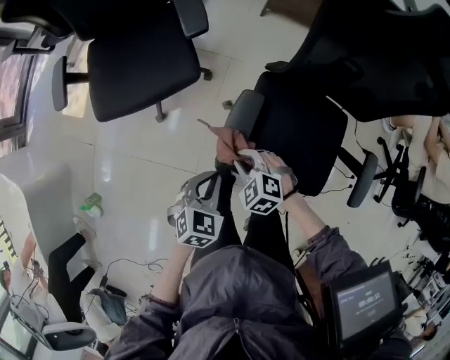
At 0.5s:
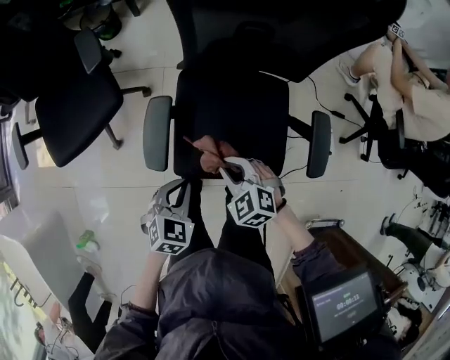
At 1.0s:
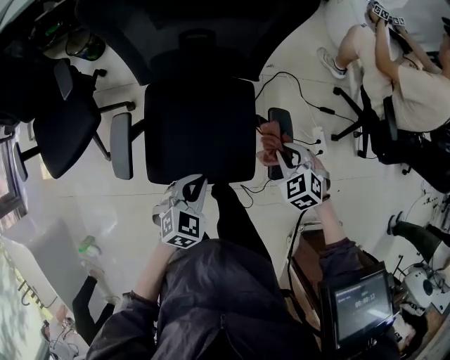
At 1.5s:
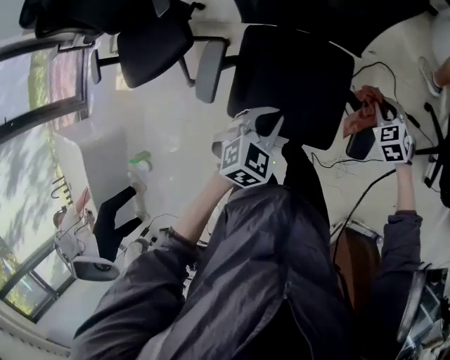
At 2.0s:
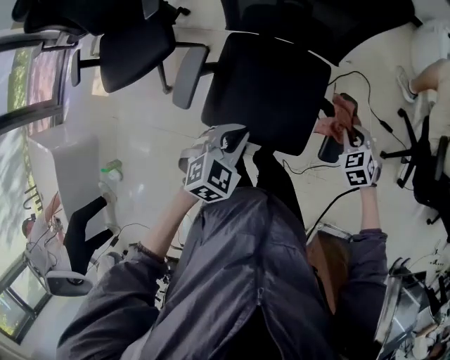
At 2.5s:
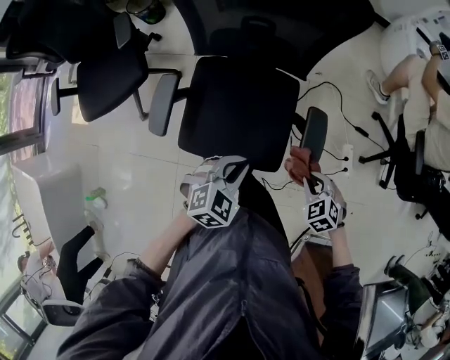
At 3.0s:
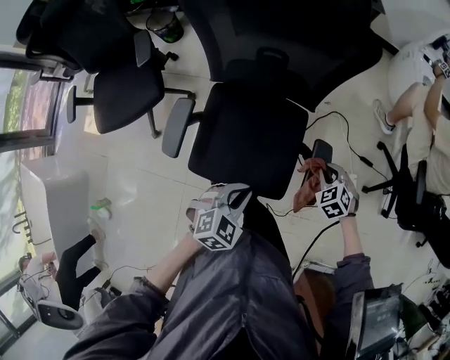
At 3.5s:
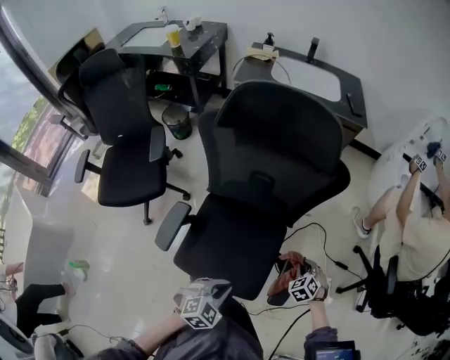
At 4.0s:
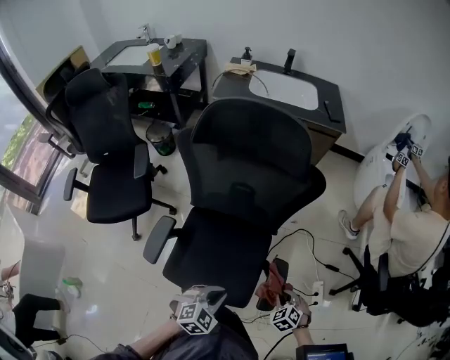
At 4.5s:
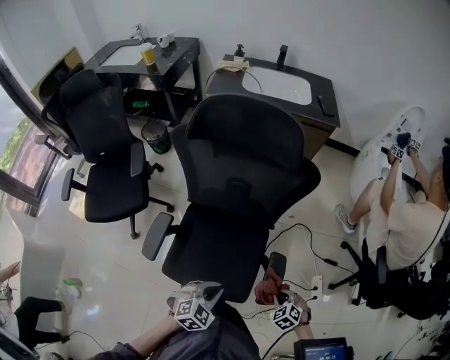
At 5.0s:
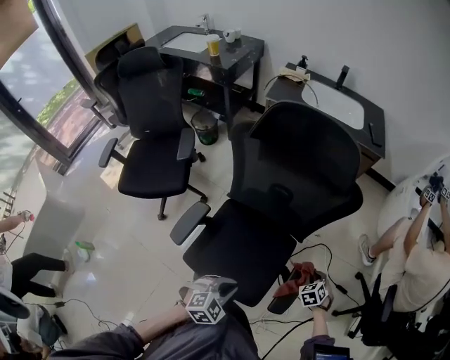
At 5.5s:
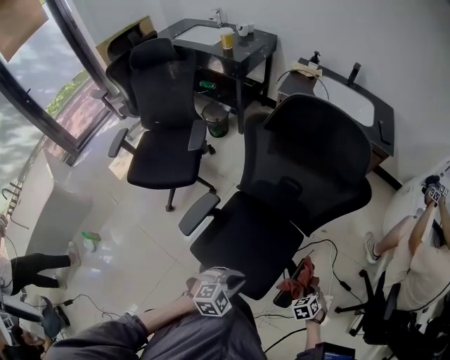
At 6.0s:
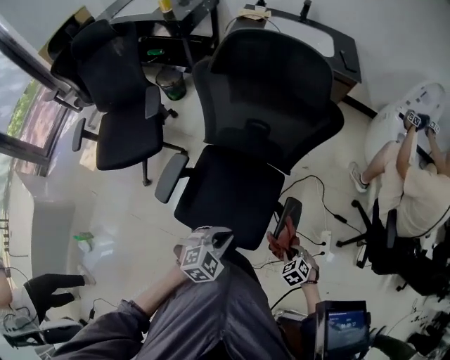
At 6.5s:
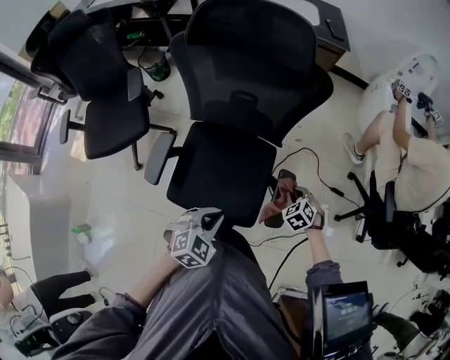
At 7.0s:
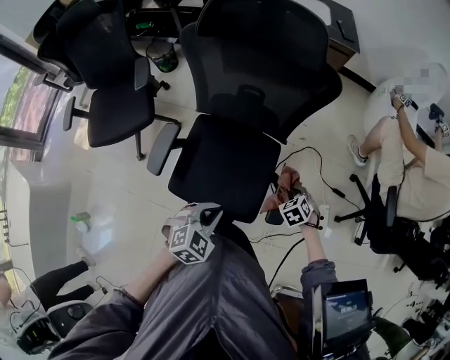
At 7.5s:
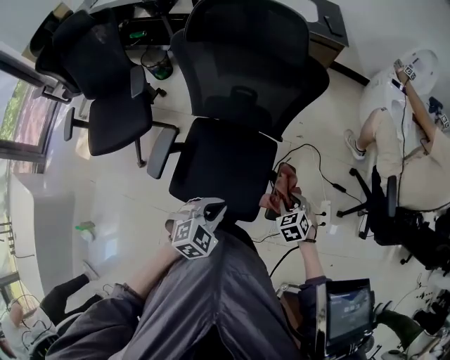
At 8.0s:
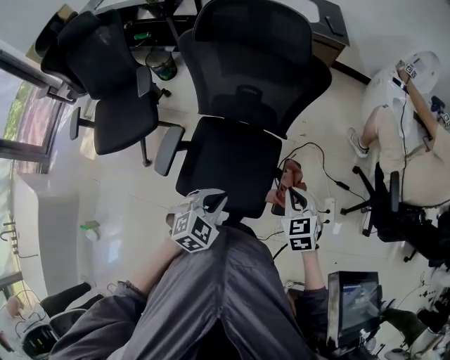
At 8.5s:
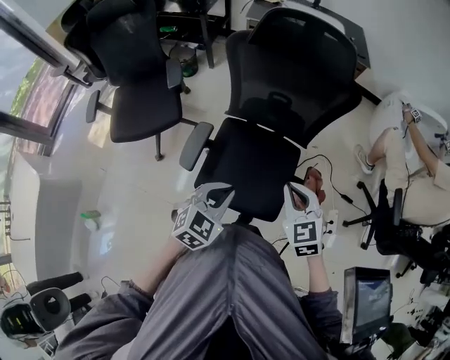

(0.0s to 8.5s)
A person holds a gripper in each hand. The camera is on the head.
0.0s - 2.0s: The right gripper shifts by approximately 50 cm, and changes its angle by about 30 degrees. Meanwhile the left gripper moves about 30 cm, and turns by some 20 degrees.
2.0s - 4.0s: The right gripper moves forward and backward over roughly 20 cm, changing direction 2 times; the left gripper shifts approximately 10 cm to the right.
4.0s - 6.5s: The right gripper swings forward and backward, approximately 20 cm each way, with 2 reversals.
6.5s - 8.5s: The left gripper goes some 15 cm to the left and upward; the right gripper moves upward and to the left, approximately 30 cm, tips its fingers upward by roughly 30 degrees, and opens, then closes again.

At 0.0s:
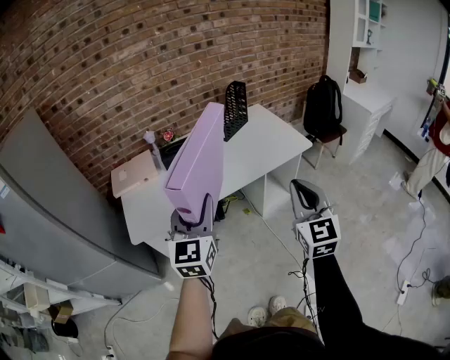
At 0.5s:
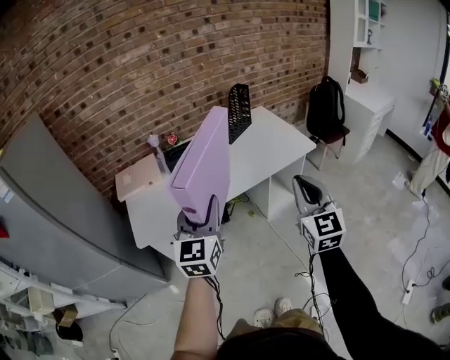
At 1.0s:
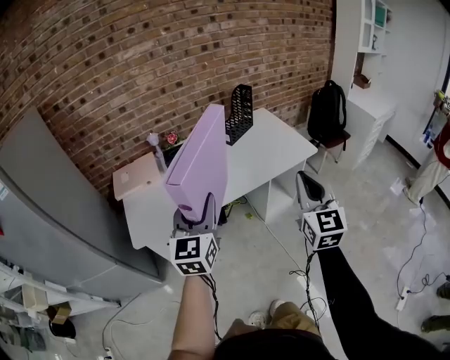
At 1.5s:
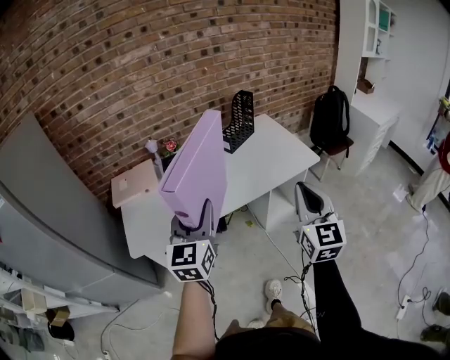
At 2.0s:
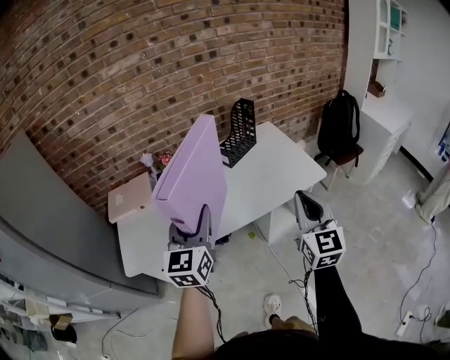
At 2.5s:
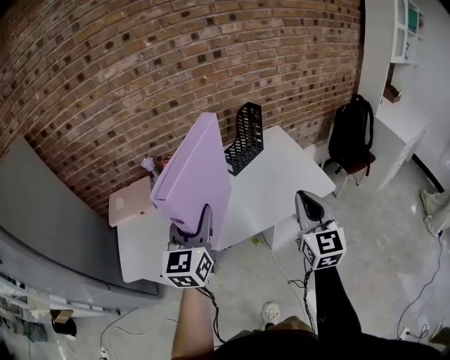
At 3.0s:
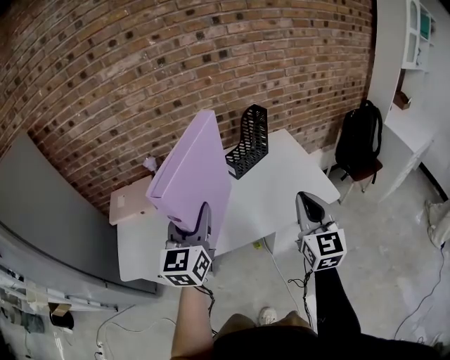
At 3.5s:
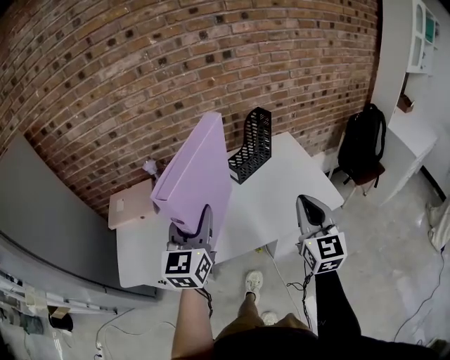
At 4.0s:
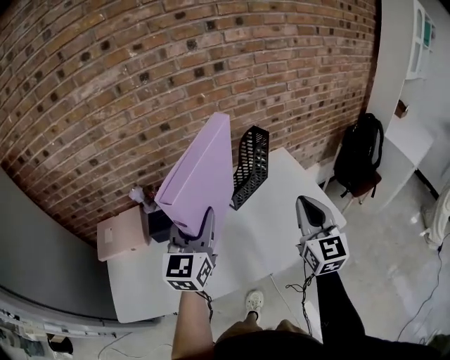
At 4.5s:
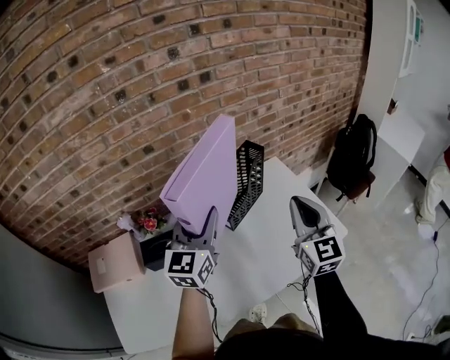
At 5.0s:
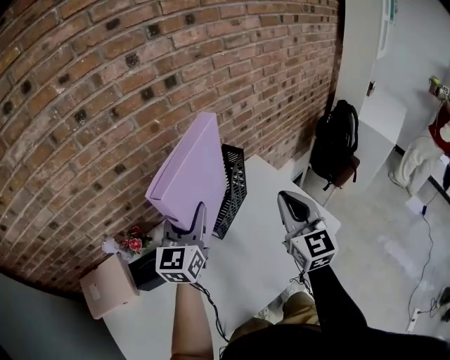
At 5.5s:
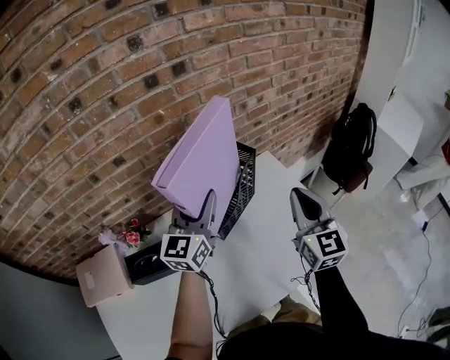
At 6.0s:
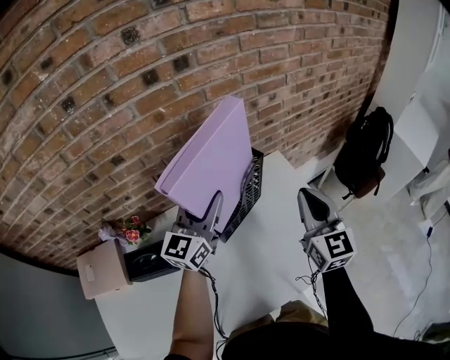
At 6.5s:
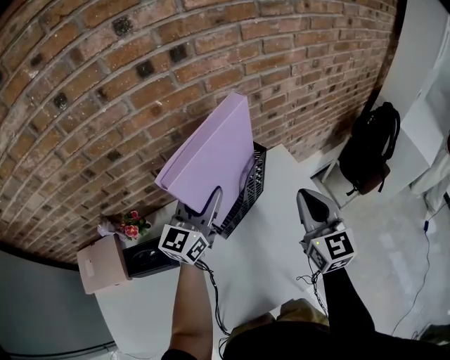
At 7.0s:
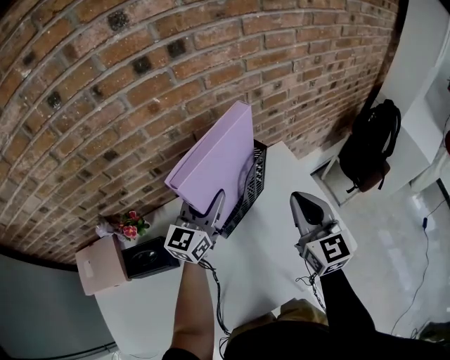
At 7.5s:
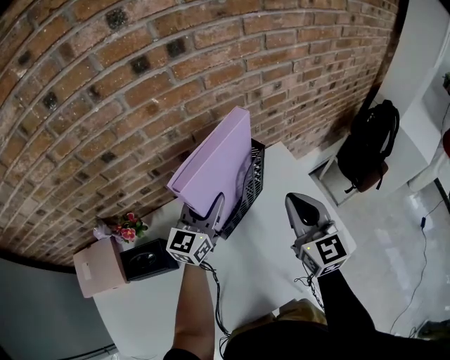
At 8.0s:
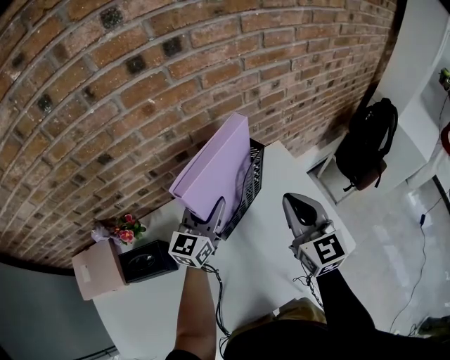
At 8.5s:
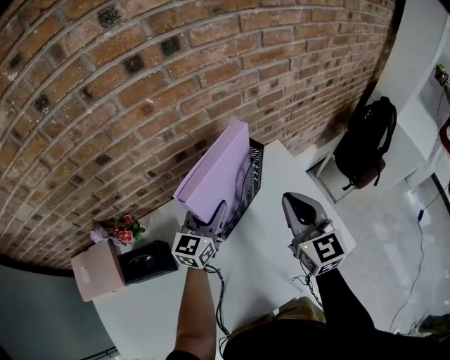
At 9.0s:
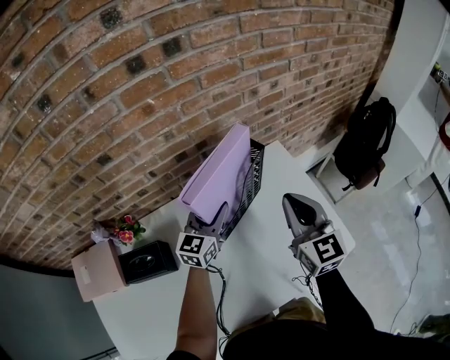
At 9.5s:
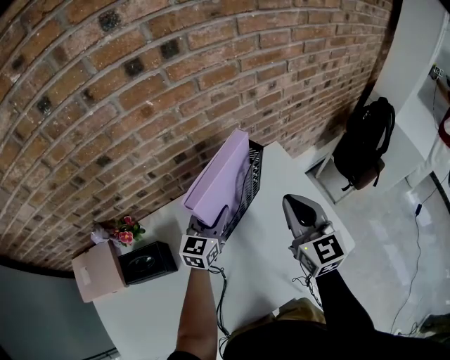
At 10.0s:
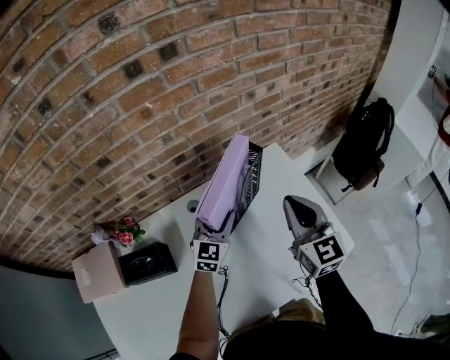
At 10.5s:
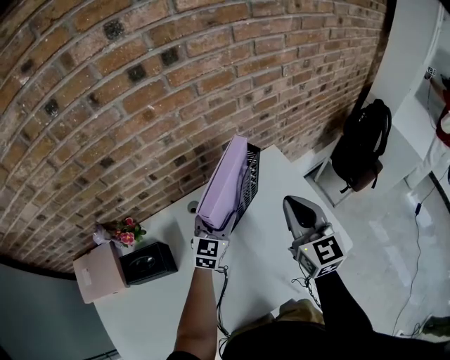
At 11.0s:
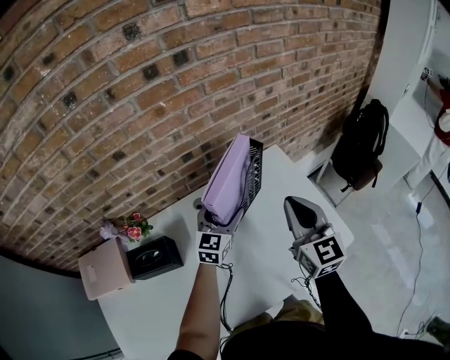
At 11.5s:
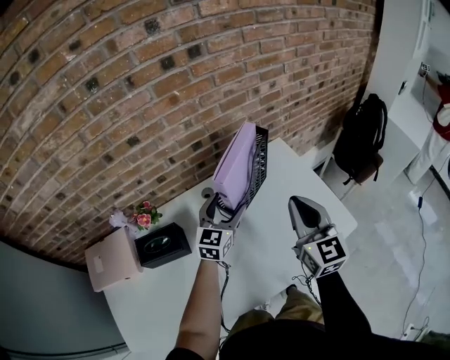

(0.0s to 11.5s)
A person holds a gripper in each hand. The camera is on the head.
0.0s - 2.0s: Both grippers travel together forward, some 15 cm.
2.0s - 4.0s: Both grippers move forward, approximately 25 cm.
4.0s - 6.0s: The grippers both shift forward by approximately 25 cm.
6.0s - 7.5s: The left gripper goes roughly 10 cm downward. Meanwhile the right gripper ends up approximately 5 cm from where it was.
7.5s - 9.5s: The left gripper heads downward, covering about 10 cm.
9.5s - 11.5s: Both grippers move backward, approximately 10 cm. The left gripper opens up.

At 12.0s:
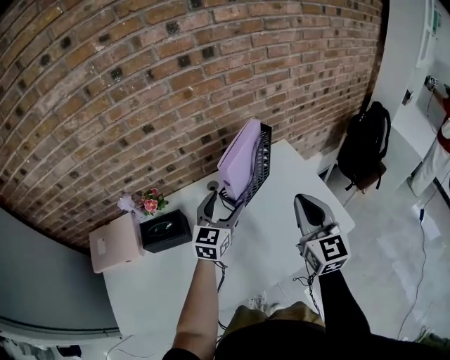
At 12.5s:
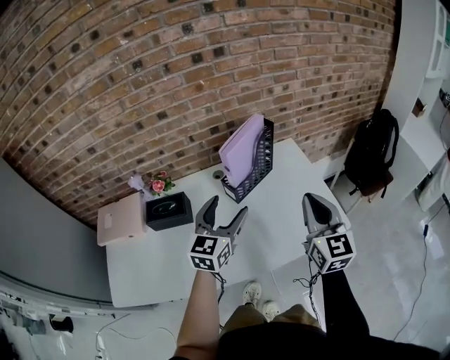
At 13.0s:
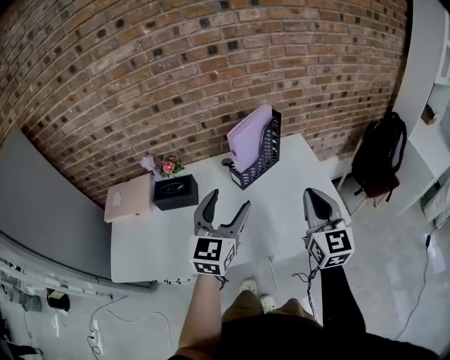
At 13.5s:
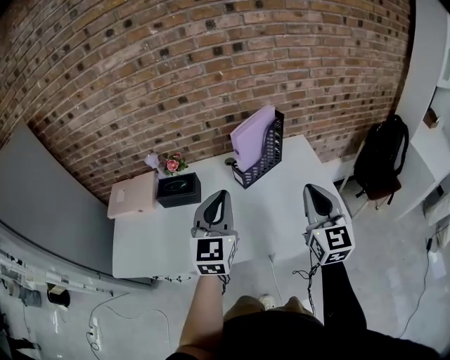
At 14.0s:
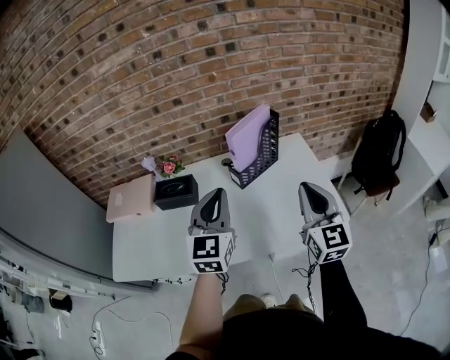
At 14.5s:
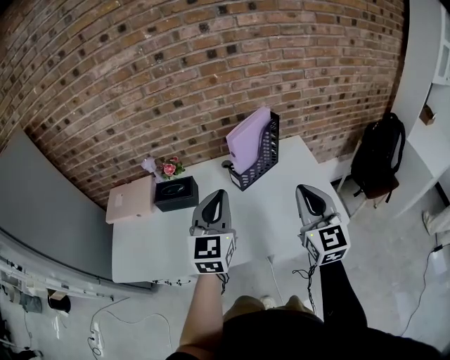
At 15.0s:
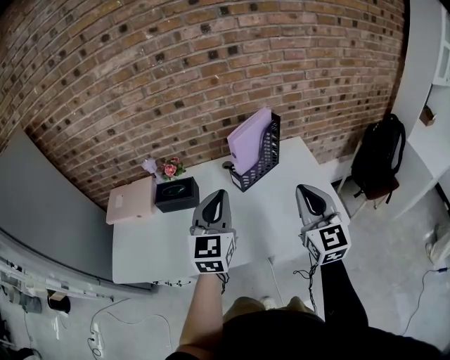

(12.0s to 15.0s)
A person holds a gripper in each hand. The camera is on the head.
12.0s - 13.5s: The right gripper shifts roughly 10 cm backward, while the left gripper travels backward and upward by roughly 25 cm, rotates approximately 30 degrees, and closes its fingers.
13.5s - 15.0s: There are only small adjustments of the grippers.

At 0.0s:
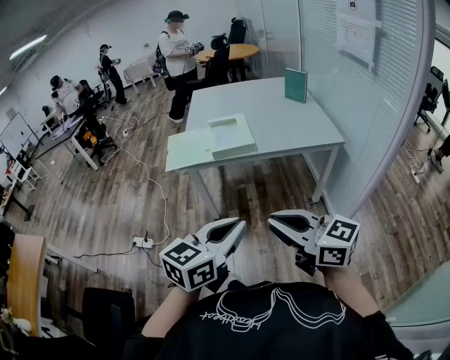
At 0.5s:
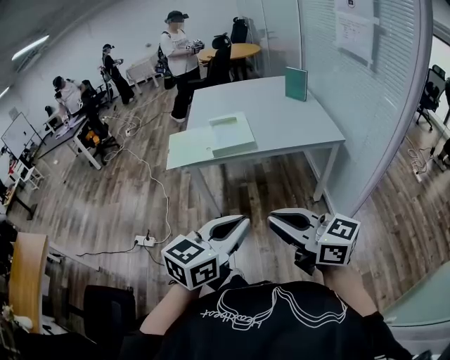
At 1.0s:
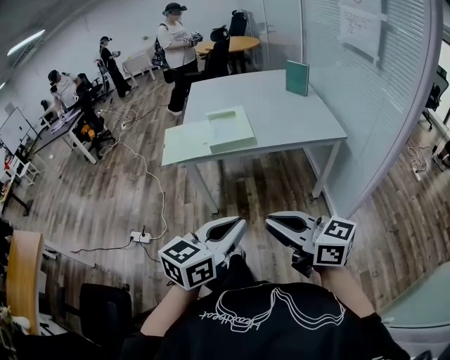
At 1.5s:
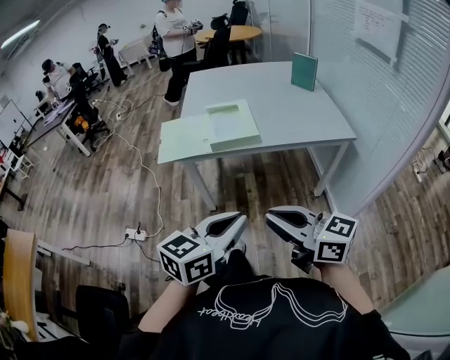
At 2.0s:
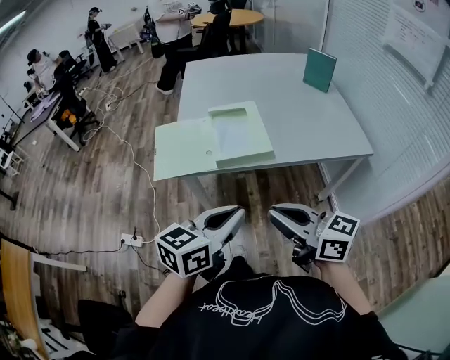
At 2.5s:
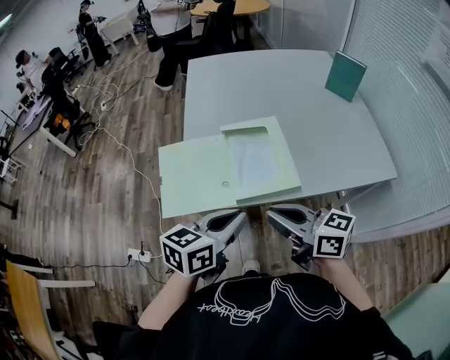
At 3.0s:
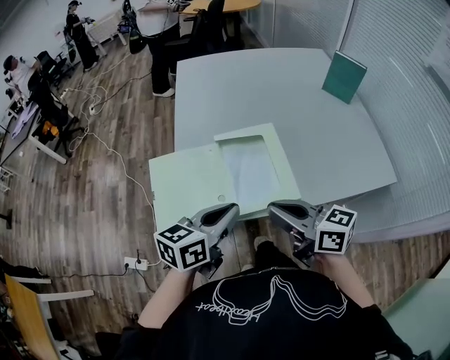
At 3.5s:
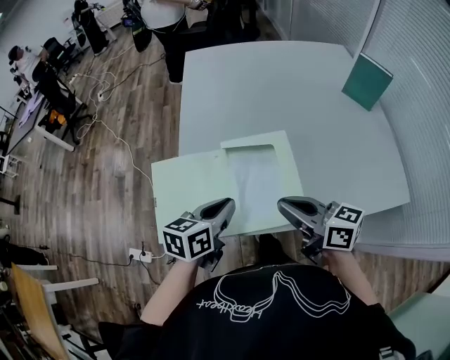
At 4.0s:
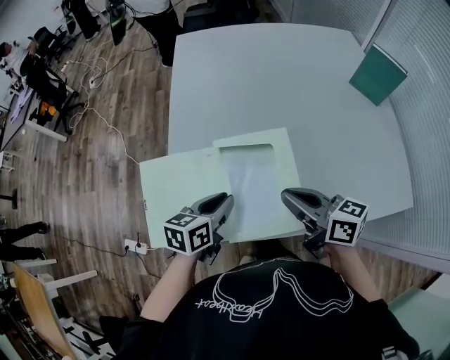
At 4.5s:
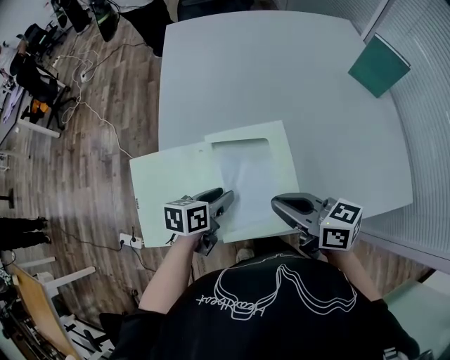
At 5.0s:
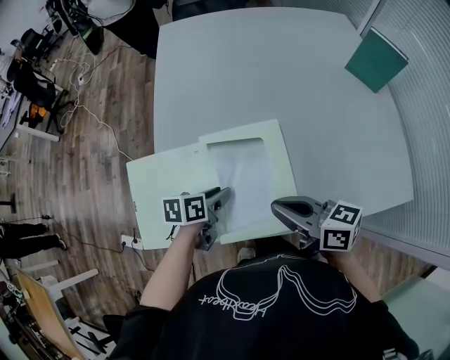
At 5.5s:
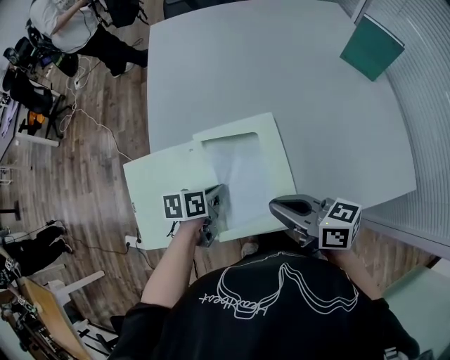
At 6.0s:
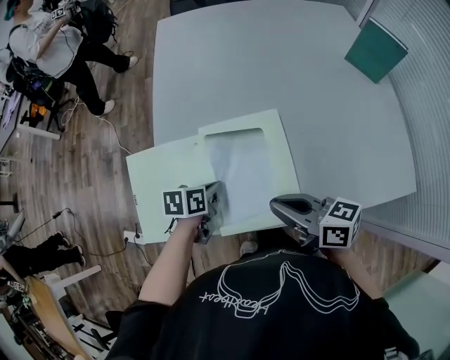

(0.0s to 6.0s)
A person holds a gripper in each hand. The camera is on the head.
0.0s - 2.0s: Both grippers travel together forward, roughly 30 cm.
2.0s - 4.0s: The two grippers travel together, forward, about 40 cm. The left gripper goes roughly 20 cm downward, and rotates roughly 20 degrees.
4.0s - 6.0s: The right gripper ends up approximately 5 cm from where it was. The left gripper heads downward, covering about 10 cm, changes its angle by roughly 20 degrees, and opens, then closes once more.
